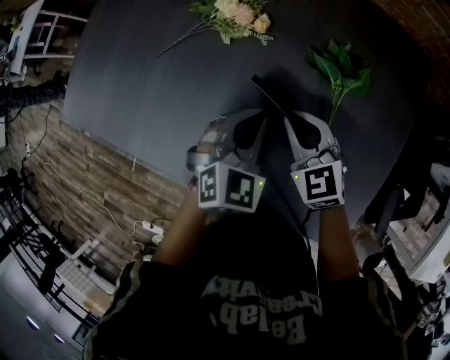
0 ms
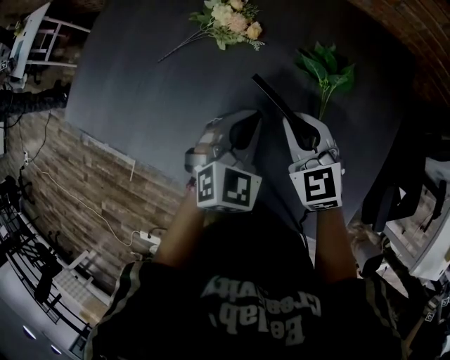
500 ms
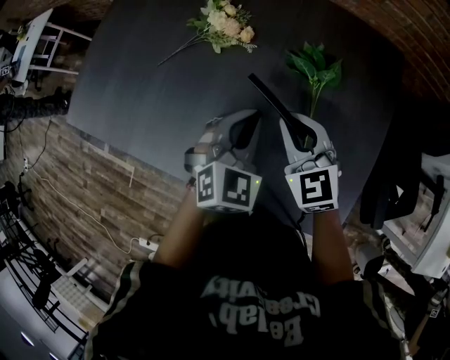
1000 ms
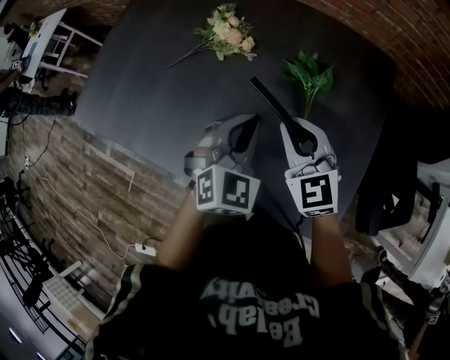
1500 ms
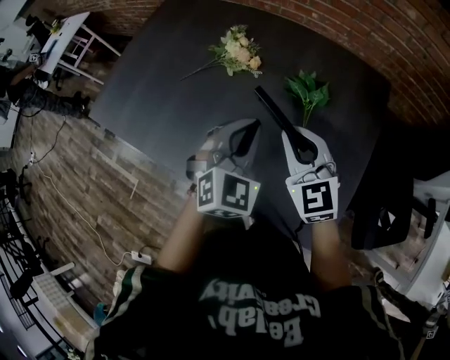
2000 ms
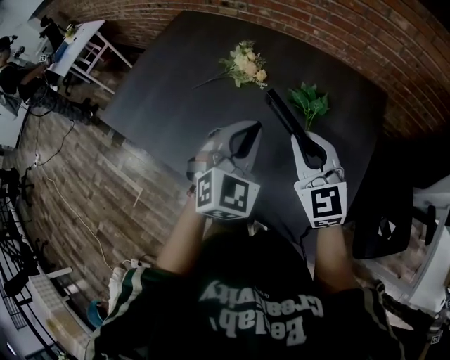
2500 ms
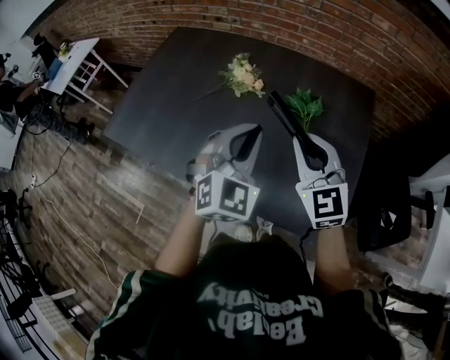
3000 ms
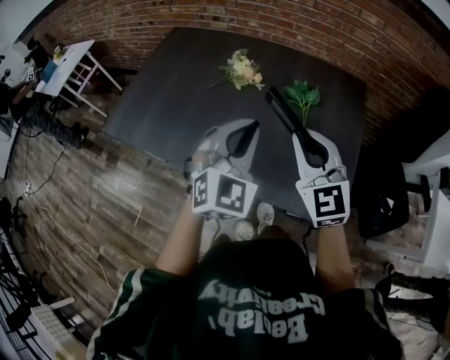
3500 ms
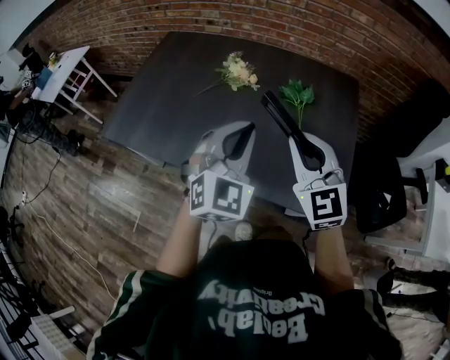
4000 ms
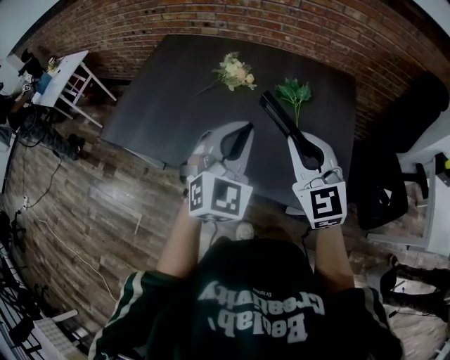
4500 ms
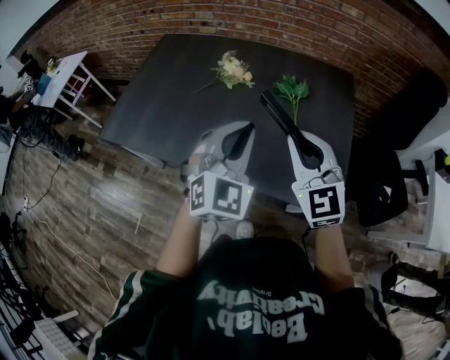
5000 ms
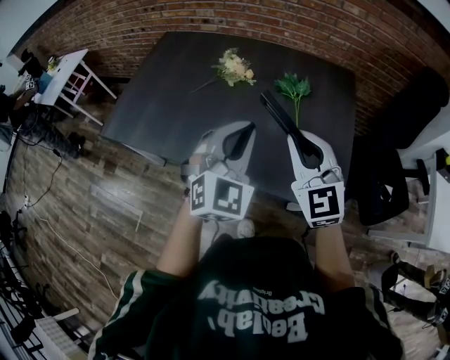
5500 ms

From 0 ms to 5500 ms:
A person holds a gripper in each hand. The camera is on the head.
From 0 ms to 2000 ms: Both grippers move upward and backward, roughly 20 cm.
From 2000 ms to 3500 ms: The two grippers go about 20 cm backward, upward and to the left.
From 3500 ms to 5500 ms: Both grippers move backward, about 5 cm.

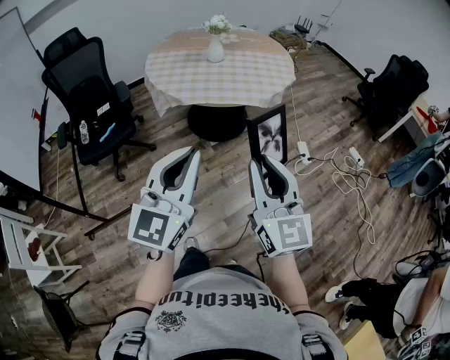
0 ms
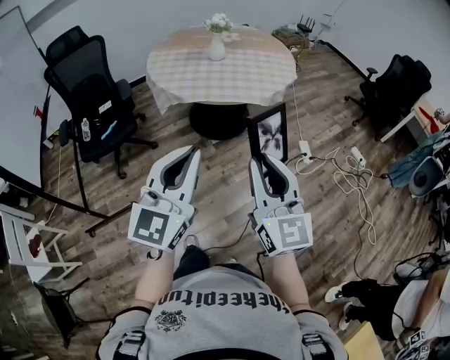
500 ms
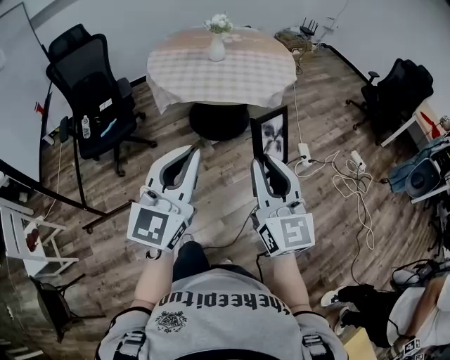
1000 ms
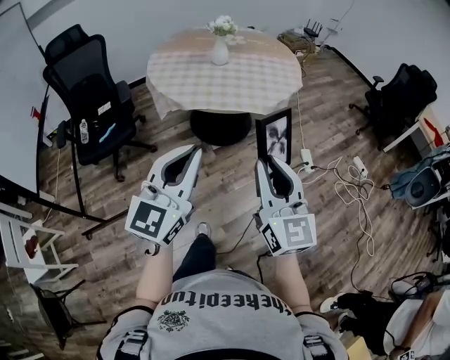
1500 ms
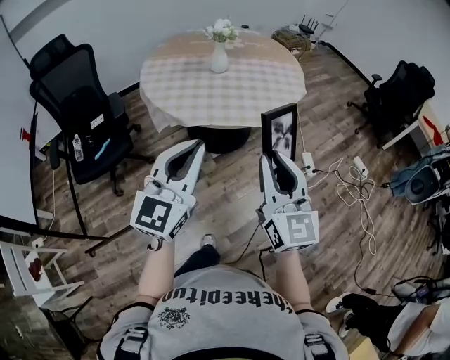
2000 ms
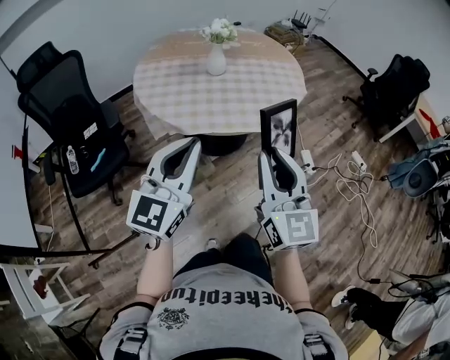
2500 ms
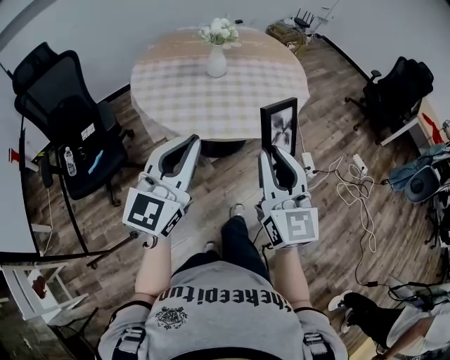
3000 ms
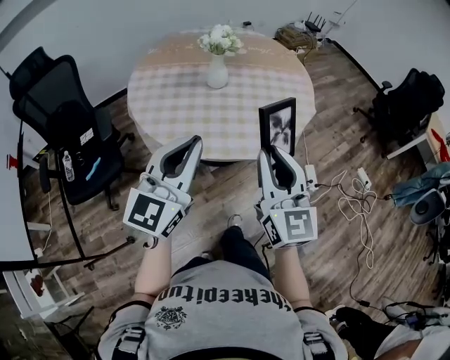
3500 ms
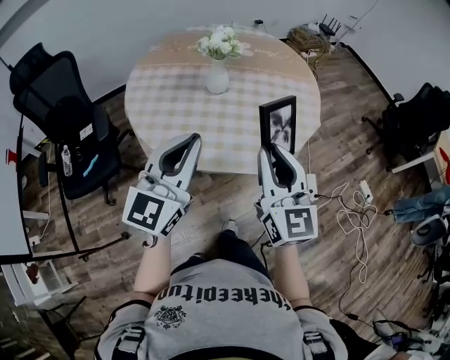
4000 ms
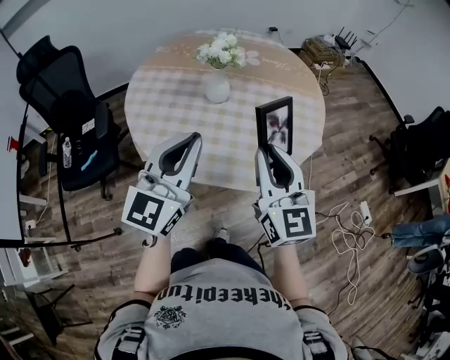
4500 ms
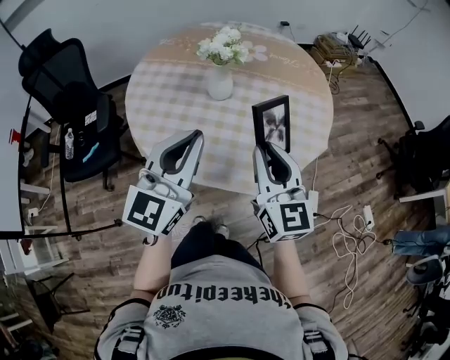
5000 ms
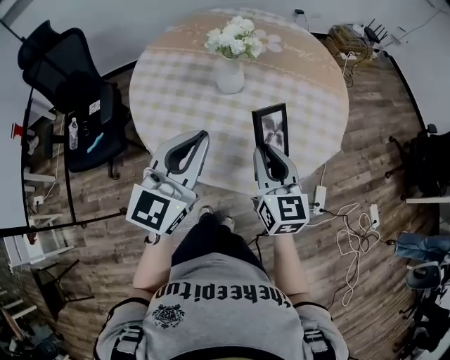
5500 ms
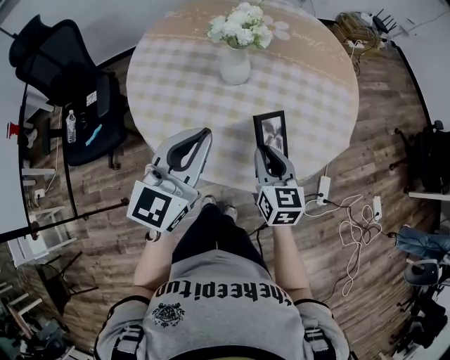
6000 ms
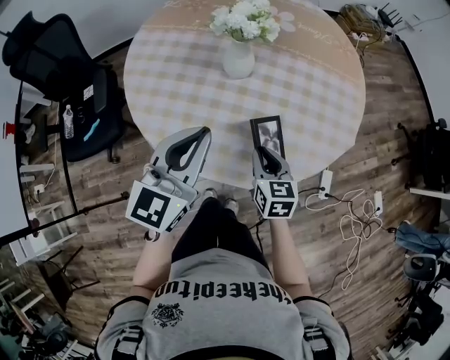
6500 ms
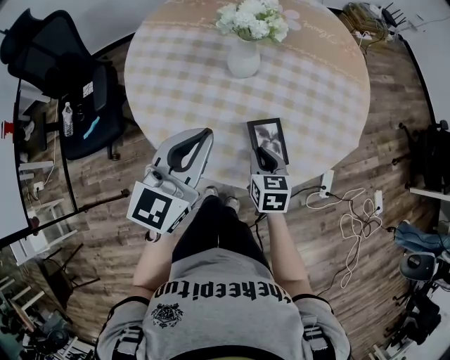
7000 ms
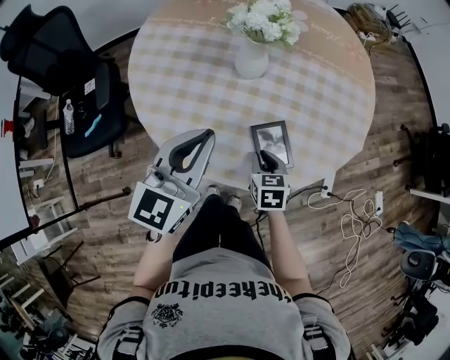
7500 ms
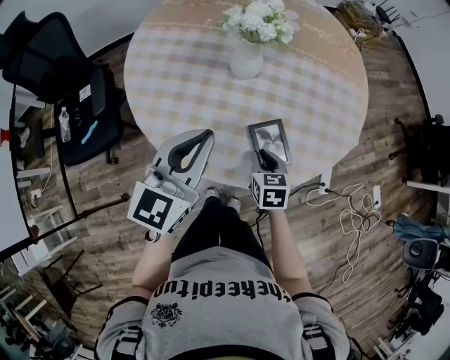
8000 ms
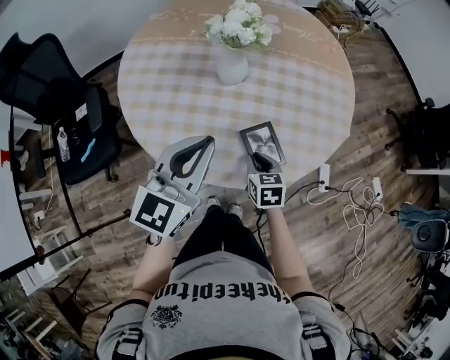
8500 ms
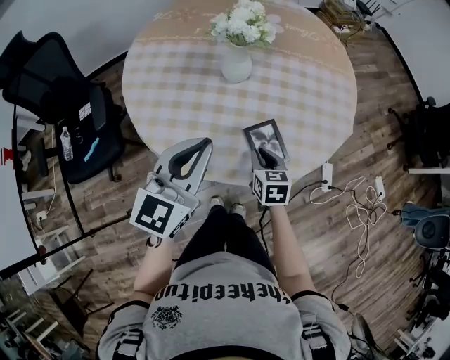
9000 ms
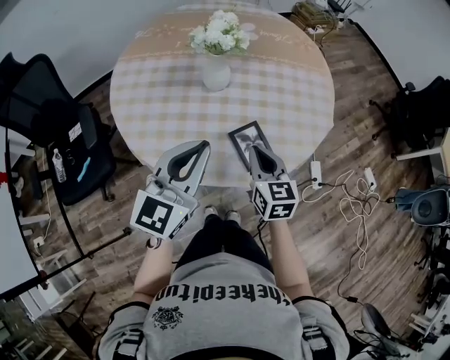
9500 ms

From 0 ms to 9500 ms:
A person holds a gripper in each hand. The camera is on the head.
From 0 ms to 2000 ms: Both grippers move forward, roughly 20 cm.
From 2000 ms to 4000 ms: The grippers both shift forward by approximately 30 cm.
From 4000 ms to 5500 ms: The left gripper is displaced forward and to the right by about 10 cm. Meanwhile the right gripper moves forward and downward, some 20 cm.
From 5500 ms to 7500 ms: The right gripper moves downward, about 20 cm, and tips its fingers downward by approximately 40 degrees; the left gripper heads downward, to the left and forward, covering some 10 cm.
From 7500 ms to 9500 ms: The right gripper moves upward, roughly 15 cm, and changes its angle by about 30 degrees. Meanwhile the left gripper changes place by roughly 5 cm.

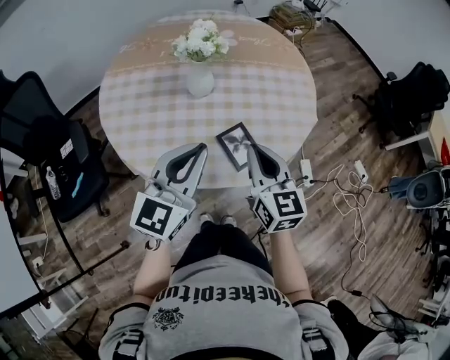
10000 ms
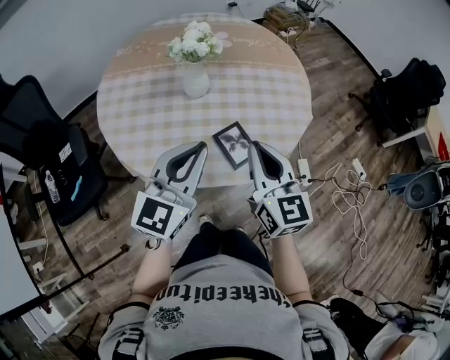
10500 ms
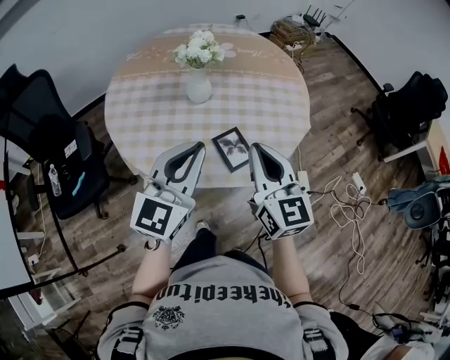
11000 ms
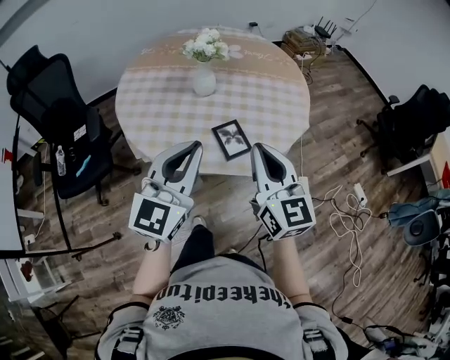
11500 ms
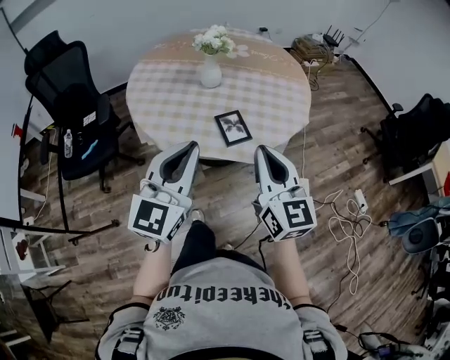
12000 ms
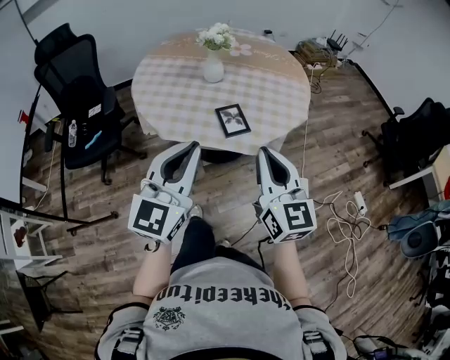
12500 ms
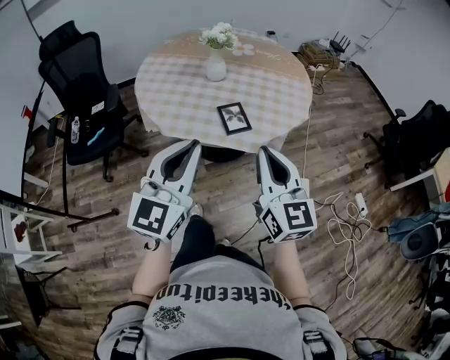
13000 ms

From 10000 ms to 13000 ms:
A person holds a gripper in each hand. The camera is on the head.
From 10000 ms to 11500 ms: The right gripper is displaced backward, upward and to the right by some 15 cm. The left gripper shifts about 10 cm backward and upward.
From 11500 ms to 13000 ms: The two grippers go approximately 15 cm backward.

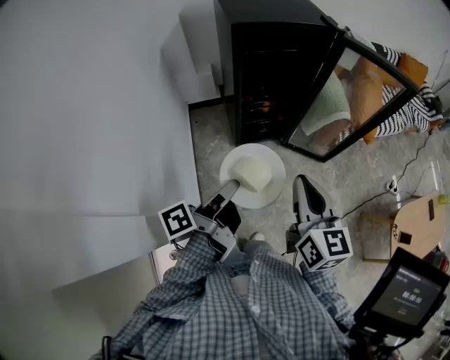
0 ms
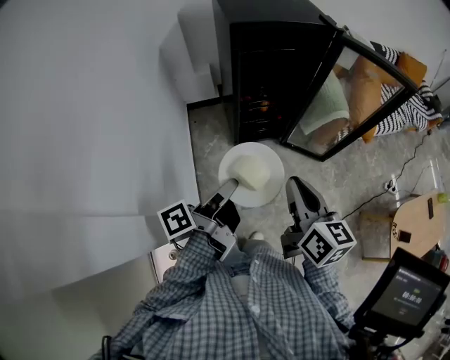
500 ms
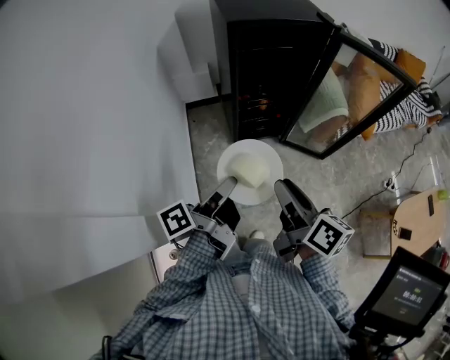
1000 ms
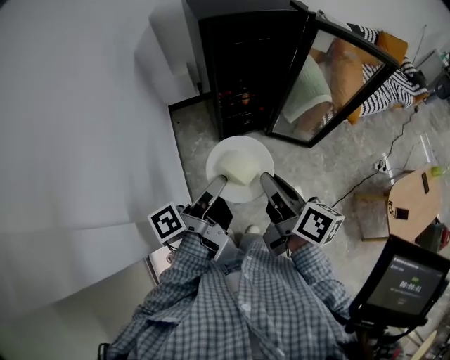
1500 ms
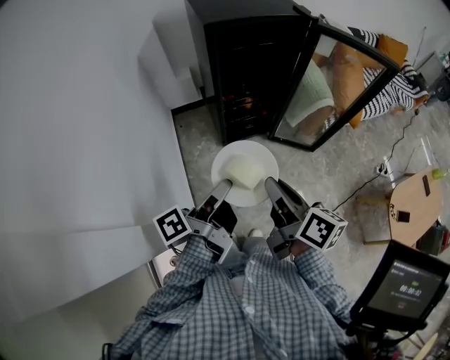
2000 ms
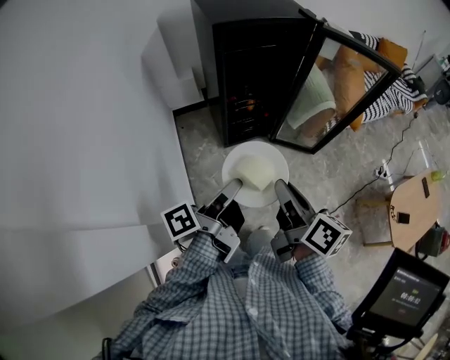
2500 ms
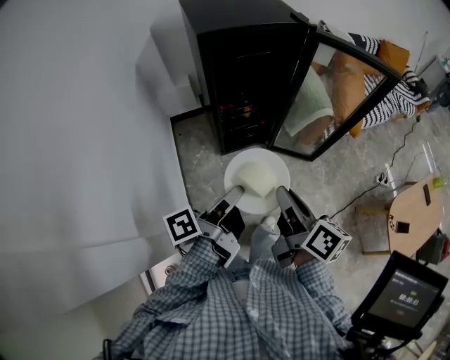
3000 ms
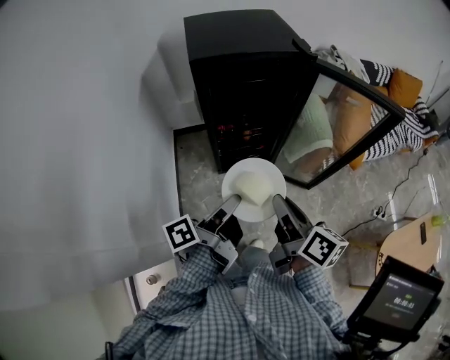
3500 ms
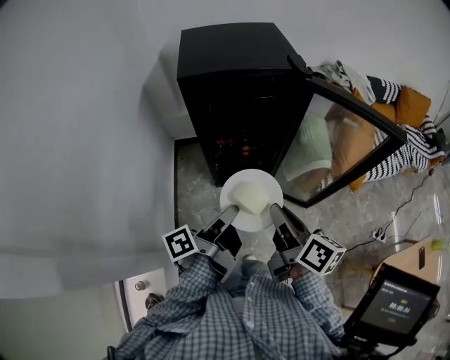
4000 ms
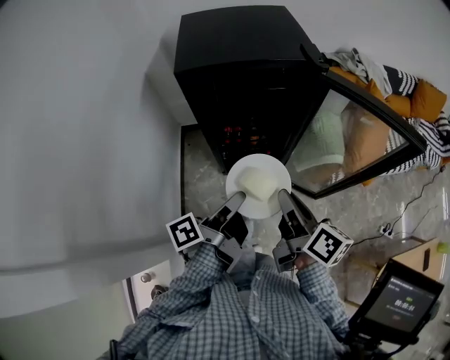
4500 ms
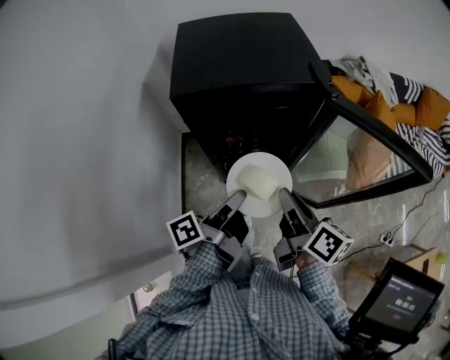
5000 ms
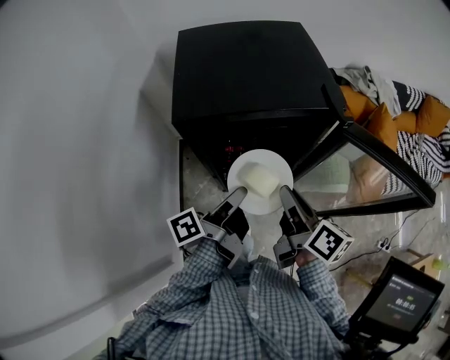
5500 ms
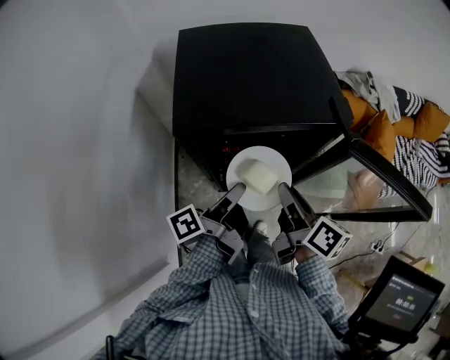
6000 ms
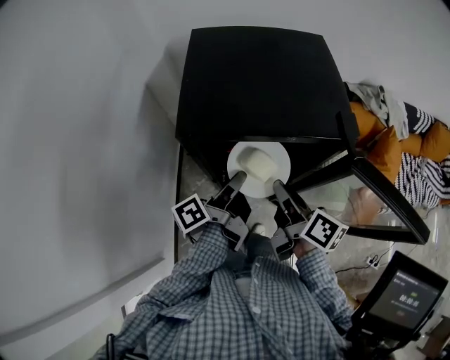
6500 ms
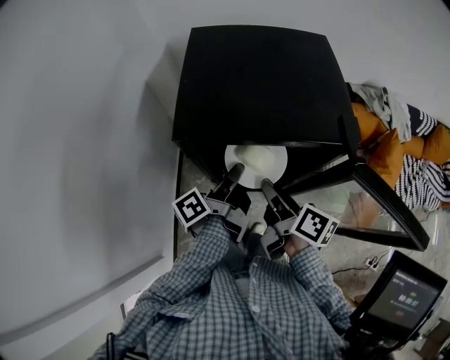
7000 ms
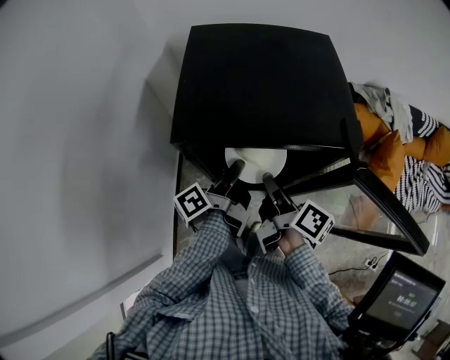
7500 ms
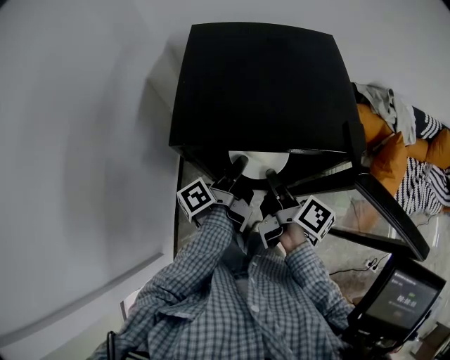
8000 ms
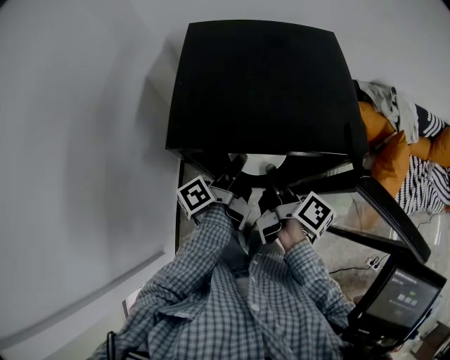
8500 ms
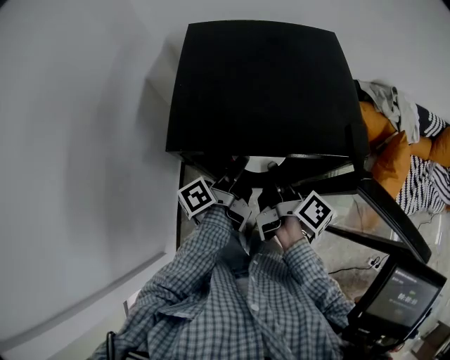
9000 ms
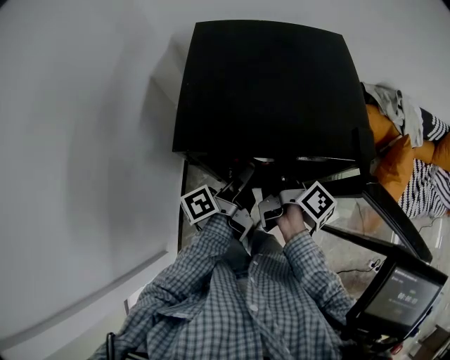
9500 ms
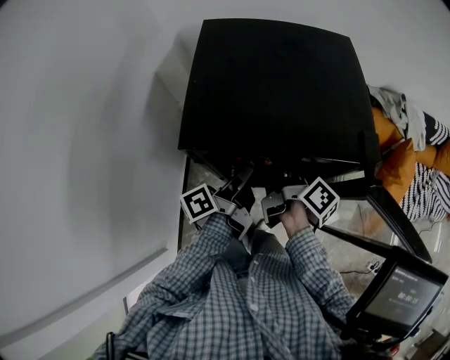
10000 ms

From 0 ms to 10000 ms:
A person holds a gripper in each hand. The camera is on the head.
From 0 ms to 2000 ms: The right gripper changes its angle by about 40 degrees.
From 2000 ms to 4000 ms: The right gripper shifts by roughly 20 cm.
From 6000 ms to 8000 ms: The right gripper shifts by some 5 cm.
From 8000 ms to 10000 ms: The right gripper moves about 5 cm.
